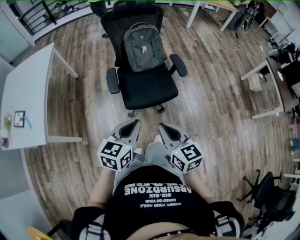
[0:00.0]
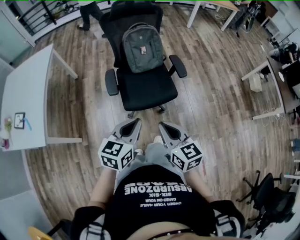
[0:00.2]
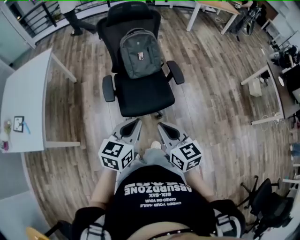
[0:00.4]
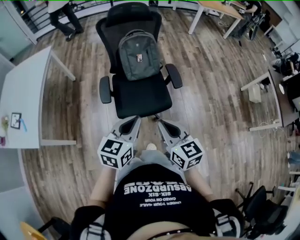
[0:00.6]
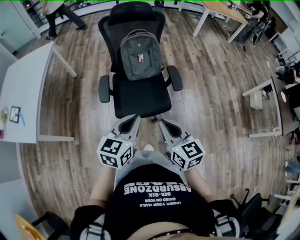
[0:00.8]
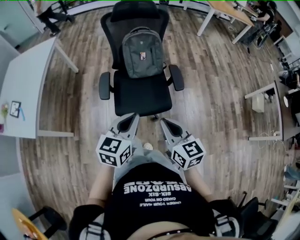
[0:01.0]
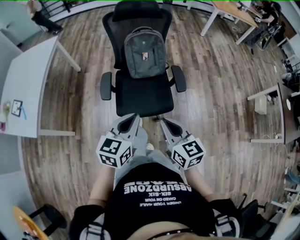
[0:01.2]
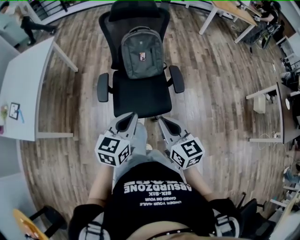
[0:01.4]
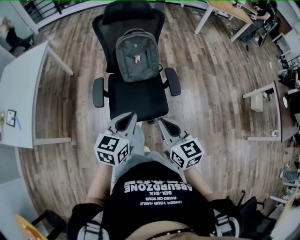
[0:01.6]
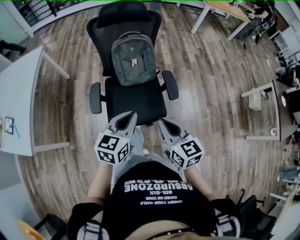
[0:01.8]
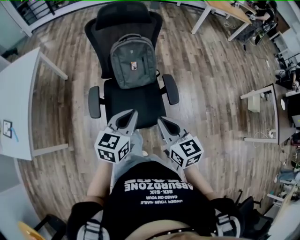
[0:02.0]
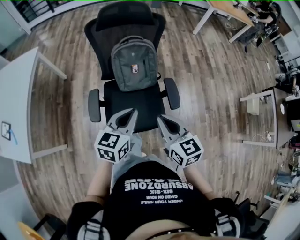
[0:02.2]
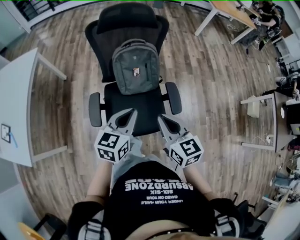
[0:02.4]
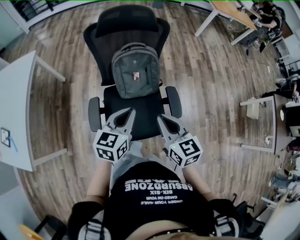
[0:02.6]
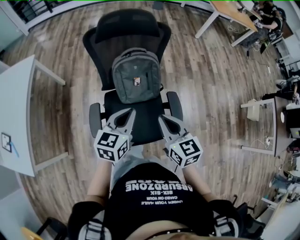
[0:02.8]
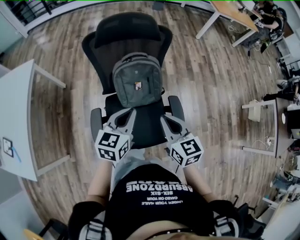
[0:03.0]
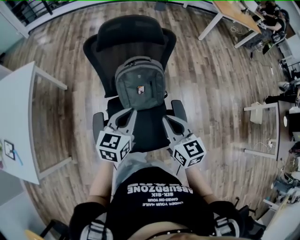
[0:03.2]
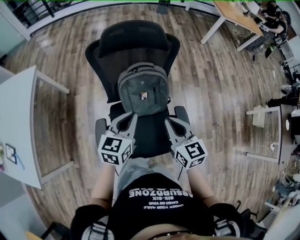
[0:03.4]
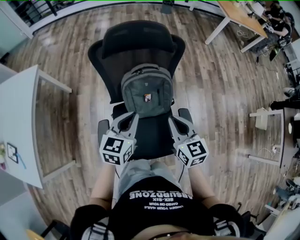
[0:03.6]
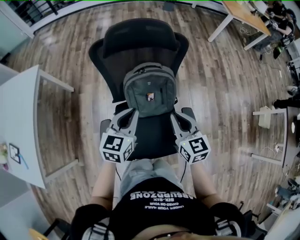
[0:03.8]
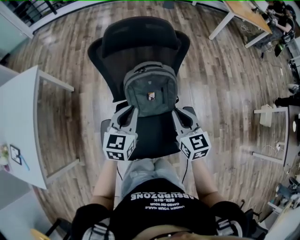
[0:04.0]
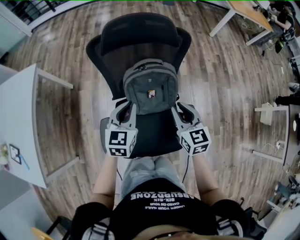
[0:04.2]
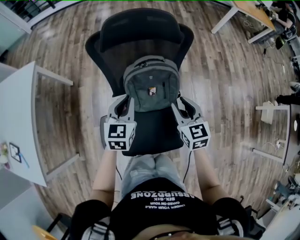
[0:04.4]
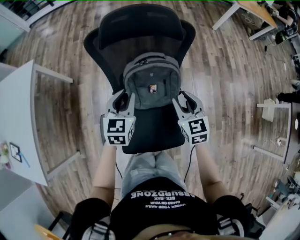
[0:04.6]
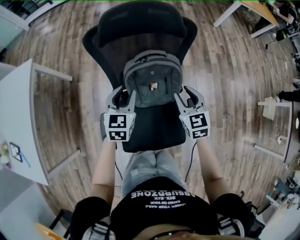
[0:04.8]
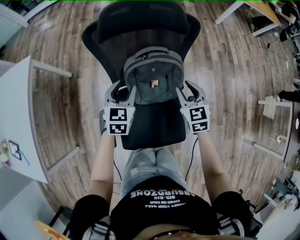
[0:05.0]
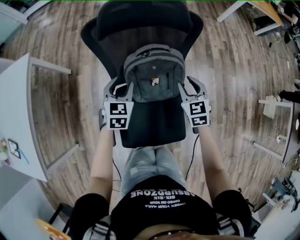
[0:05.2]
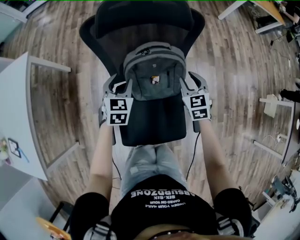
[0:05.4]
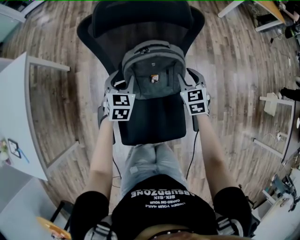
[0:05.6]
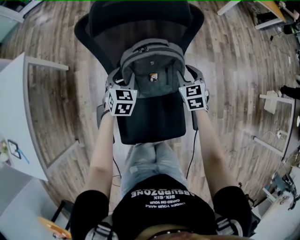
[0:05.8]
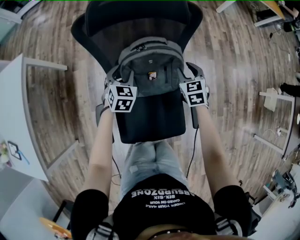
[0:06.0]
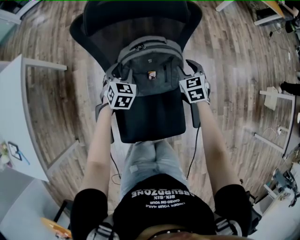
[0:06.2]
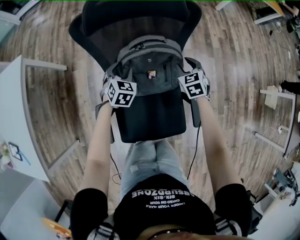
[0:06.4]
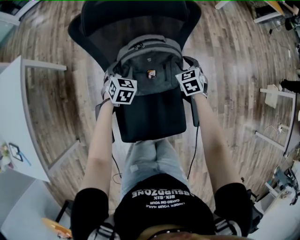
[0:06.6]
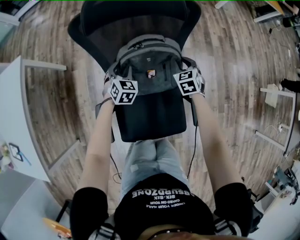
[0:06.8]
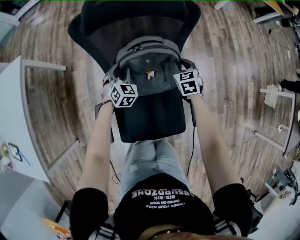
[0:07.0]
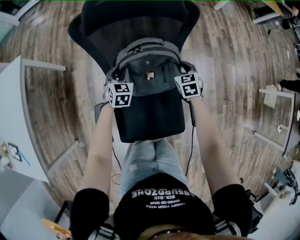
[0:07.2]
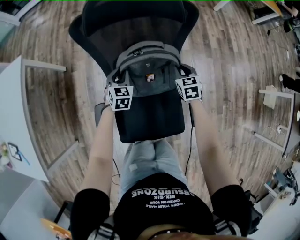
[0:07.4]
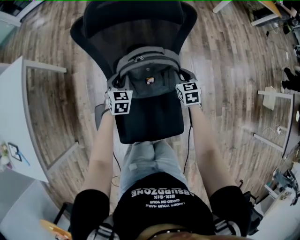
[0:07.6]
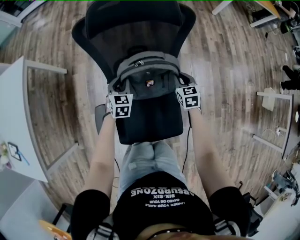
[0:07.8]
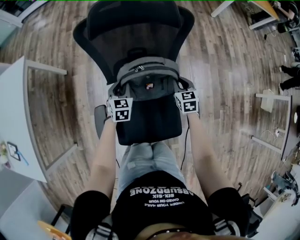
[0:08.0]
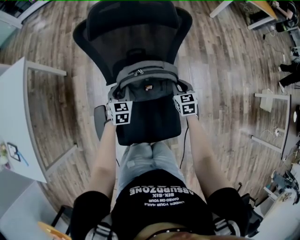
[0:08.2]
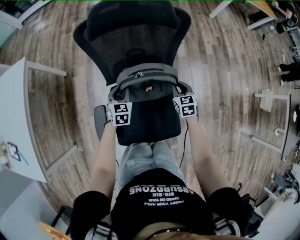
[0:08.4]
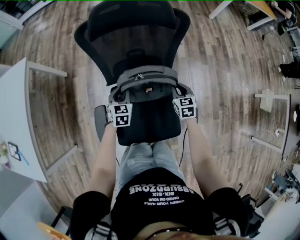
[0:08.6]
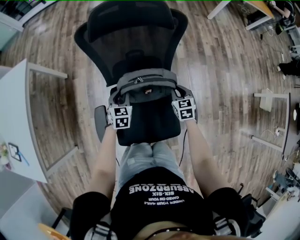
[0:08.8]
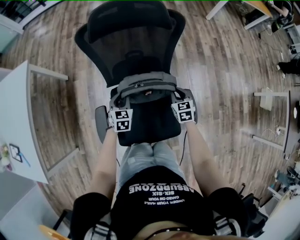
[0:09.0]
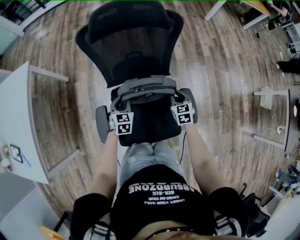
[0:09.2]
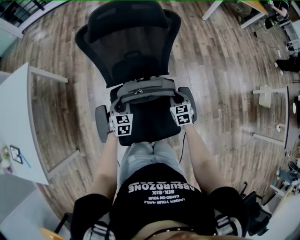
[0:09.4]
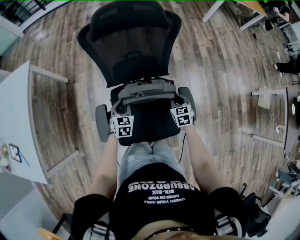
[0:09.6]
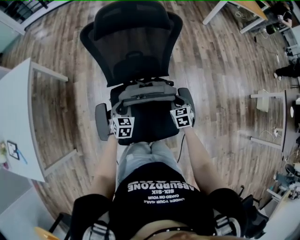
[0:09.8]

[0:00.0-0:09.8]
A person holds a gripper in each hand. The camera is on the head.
0:00.0 to 0:01.4: The two grippers go approximately 20 cm forward and to the right.
0:01.4 to 0:02.8: Both grippers move forward, roughly 30 cm.
0:02.8 to 0:04.2: The two grippers go about 20 cm forward and downward.
0:04.2 to 0:05.6: Both grippers travel together downward and forward, some 15 cm. The left gripper opens up, while the right gripper changes its angle by approximately 20 degrees.
0:05.6 to 0:07.0: The grippers both shift downward by roughly 10 cm.
0:07.0 to 0:08.4: The grippers both shift backward by some 10 cm. The left gripper turns by approximately 20 degrees.
0:08.4 to 0:09.8: Both grippers move backward, approximately 10 cm.

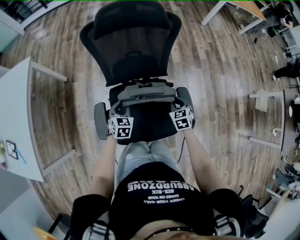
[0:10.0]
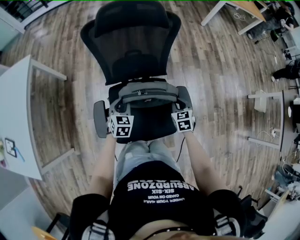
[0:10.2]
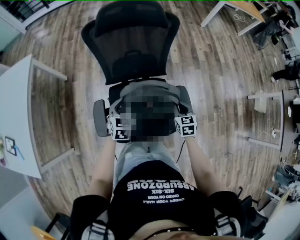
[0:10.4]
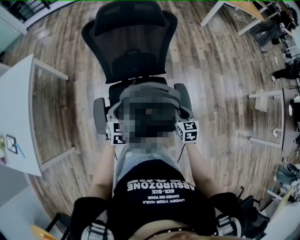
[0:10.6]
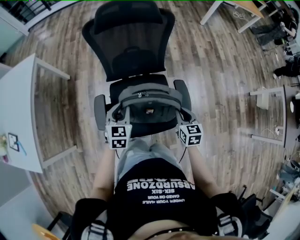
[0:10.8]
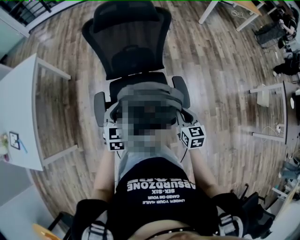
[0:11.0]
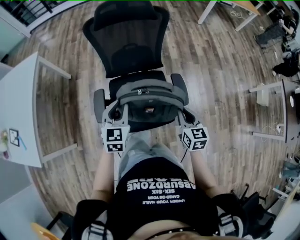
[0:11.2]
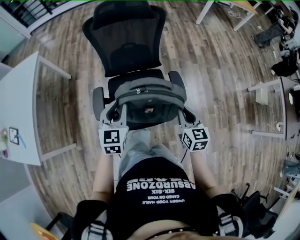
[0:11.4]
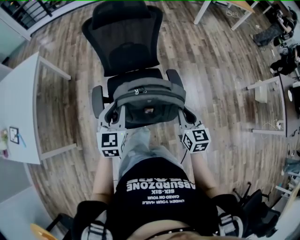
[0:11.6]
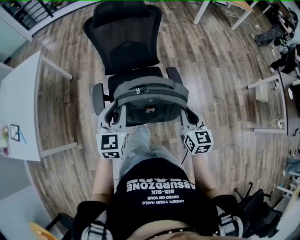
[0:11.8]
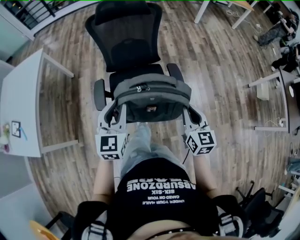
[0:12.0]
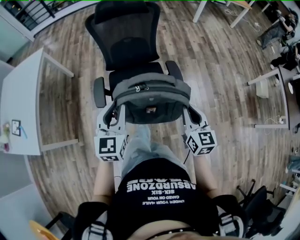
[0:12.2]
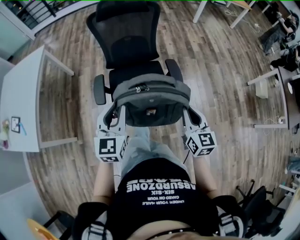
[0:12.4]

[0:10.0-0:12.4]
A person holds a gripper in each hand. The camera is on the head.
0:10.0 to 0:11.2: The left gripper is displaced upward and backward by about 25 cm; the right gripper travels backward and upward by some 25 cm, and changes its angle by some 30 degrees.
0:11.2 to 0:12.4: The grippers both shift backward and upward by some 20 cm.

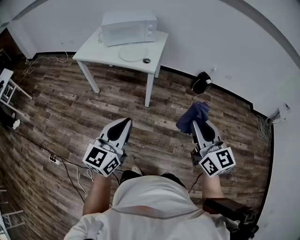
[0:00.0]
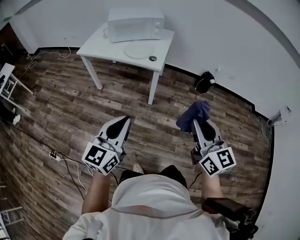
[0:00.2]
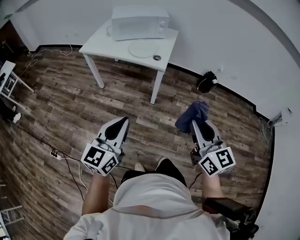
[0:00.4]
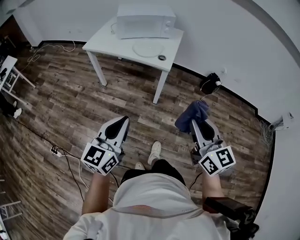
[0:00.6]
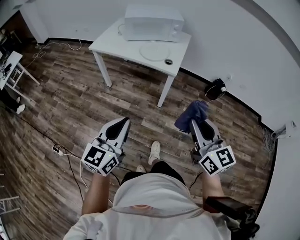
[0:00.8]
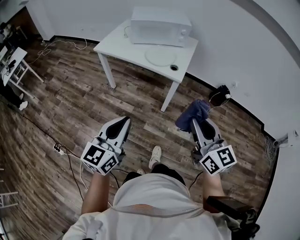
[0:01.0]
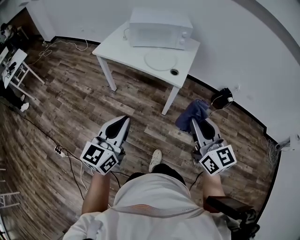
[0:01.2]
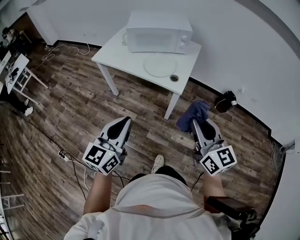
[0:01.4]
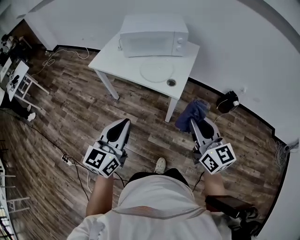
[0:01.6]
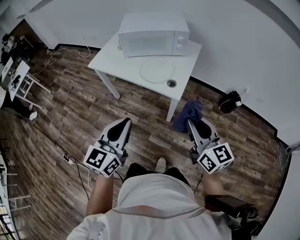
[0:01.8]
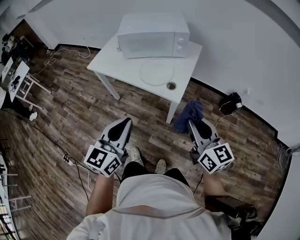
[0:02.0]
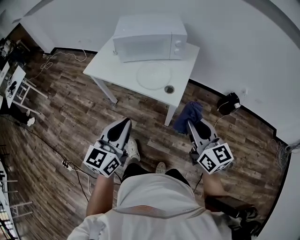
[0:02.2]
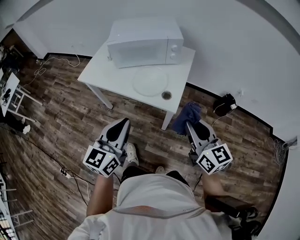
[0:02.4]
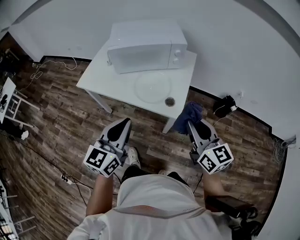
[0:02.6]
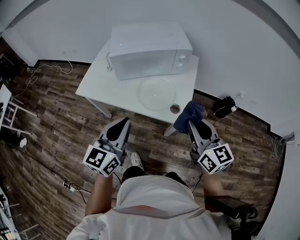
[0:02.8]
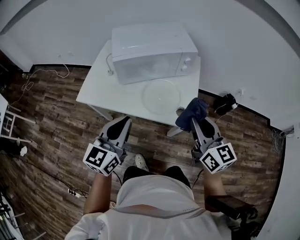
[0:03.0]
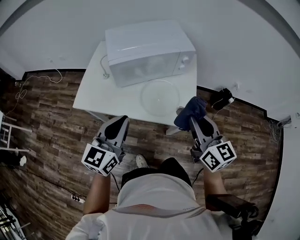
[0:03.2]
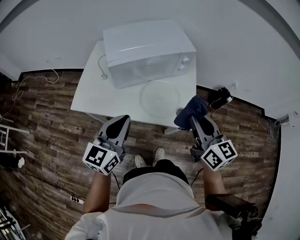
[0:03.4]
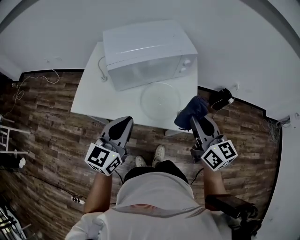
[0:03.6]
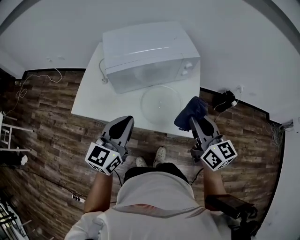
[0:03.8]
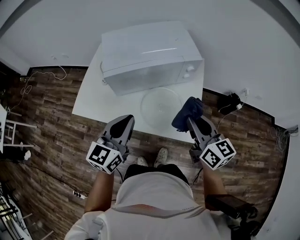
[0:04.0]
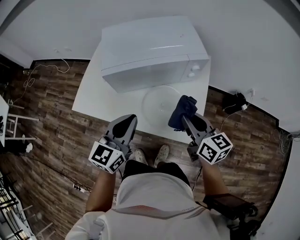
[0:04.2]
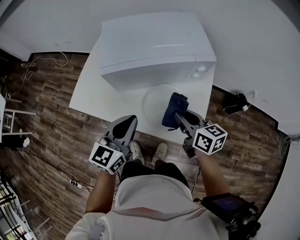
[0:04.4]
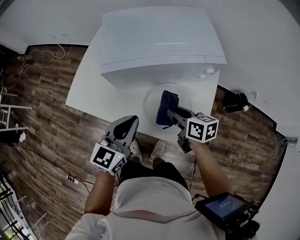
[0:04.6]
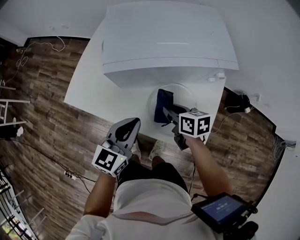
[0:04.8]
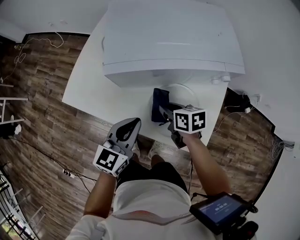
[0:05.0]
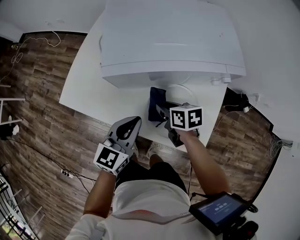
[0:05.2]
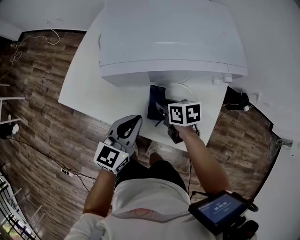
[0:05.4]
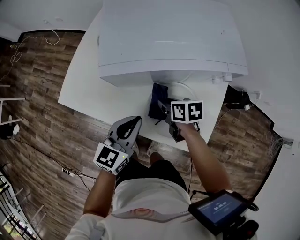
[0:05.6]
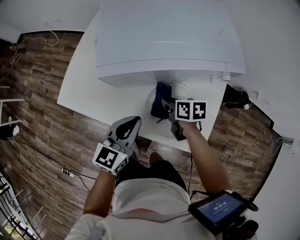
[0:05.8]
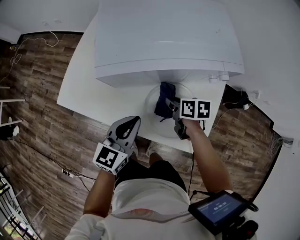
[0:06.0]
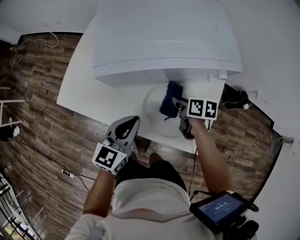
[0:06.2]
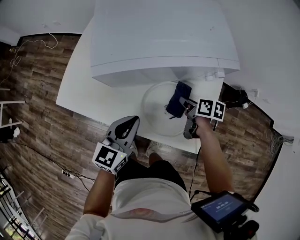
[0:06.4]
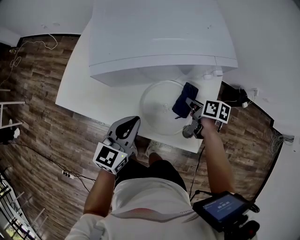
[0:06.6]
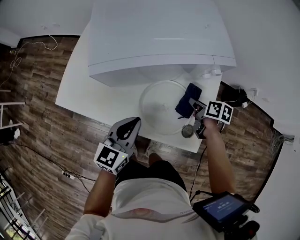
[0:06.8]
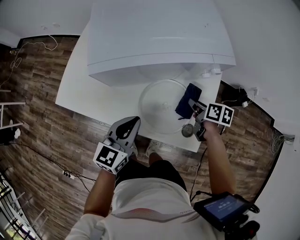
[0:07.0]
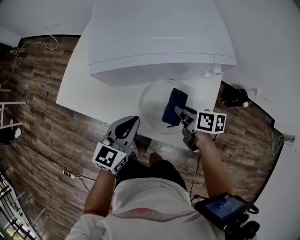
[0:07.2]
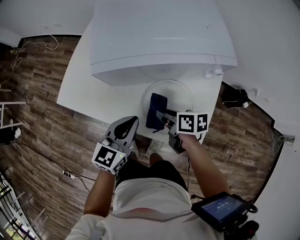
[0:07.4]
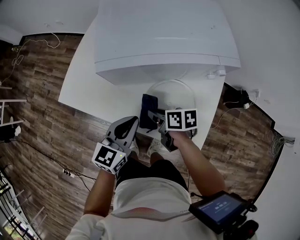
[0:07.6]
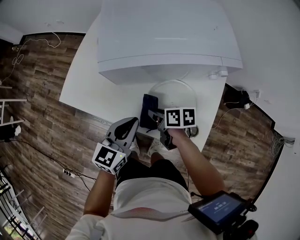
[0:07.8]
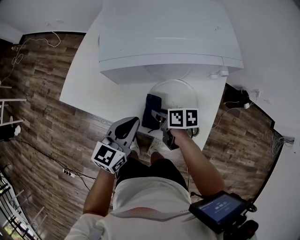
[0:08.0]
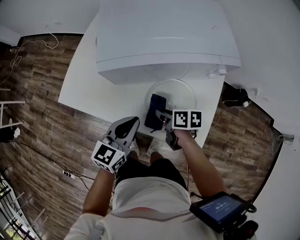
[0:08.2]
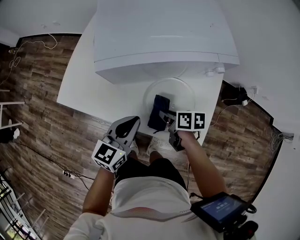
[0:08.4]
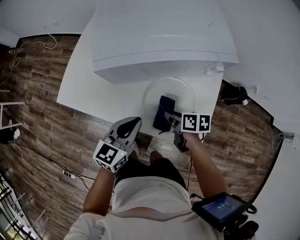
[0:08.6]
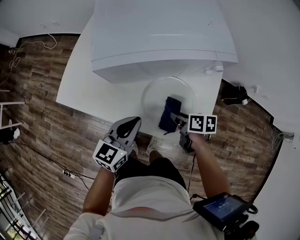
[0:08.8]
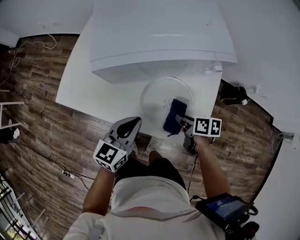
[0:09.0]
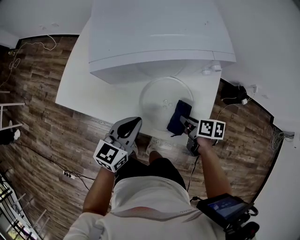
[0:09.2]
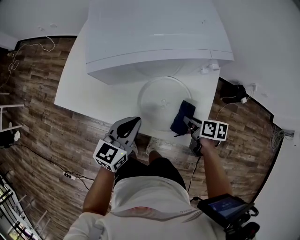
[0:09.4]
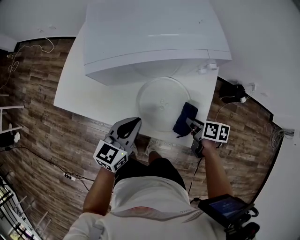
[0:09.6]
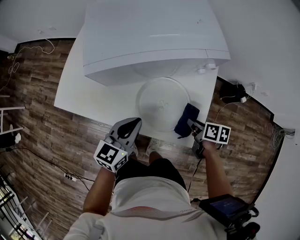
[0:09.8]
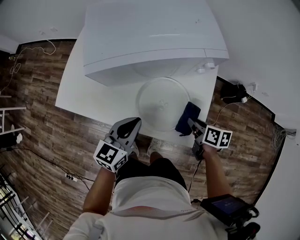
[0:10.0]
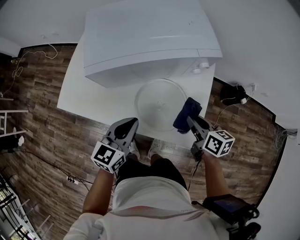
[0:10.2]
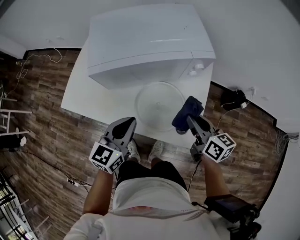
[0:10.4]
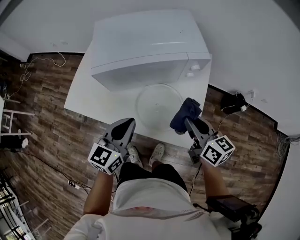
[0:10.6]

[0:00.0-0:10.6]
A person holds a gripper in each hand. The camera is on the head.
0:00.0 to 0:01.6: The grippers both shift forward by some 25 cm.
0:01.6 to 0:03.0: The right gripper shifts roughly 25 cm forward and to the left, while the left gripper moves forward, some 30 cm.
0:03.0 to 0:04.6: The right gripper is displaced downward, forward and to the left by approximately 30 cm, and changes its angle by about 40 degrees, while the left gripper travels forward and downward by approximately 20 cm.
0:04.6 to 0:06.0: The left gripper travels downward by some 5 cm, while the right gripper moves downward and forward, roughly 10 cm.
0:06.0 to 0:07.6: The right gripper is displaced backward by approximately 5 cm, and travels to the right and back again, about 15 cm each way.
0:07.6 to 0:09.0: The right gripper is displaced to the right and backward by some 15 cm.
0:09.0 to 0:10.6: The left gripper is displaced upward by some 10 cm. The right gripper moves upward, roughly 20 cm, and tips its fingers upward by approximately 30 degrees.

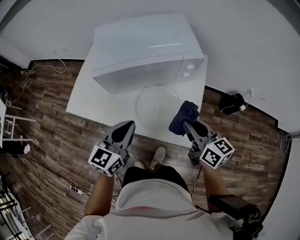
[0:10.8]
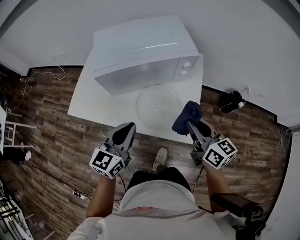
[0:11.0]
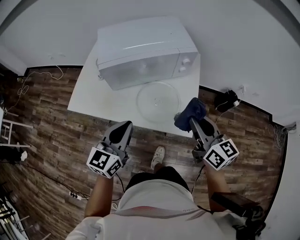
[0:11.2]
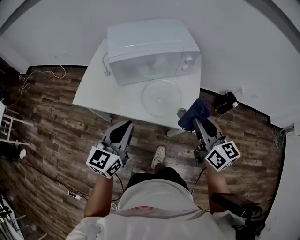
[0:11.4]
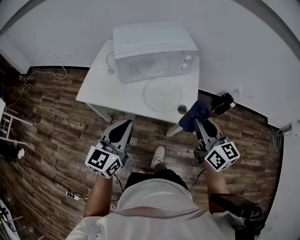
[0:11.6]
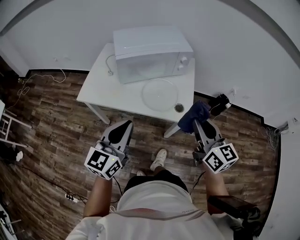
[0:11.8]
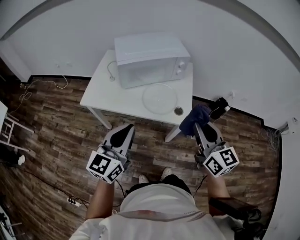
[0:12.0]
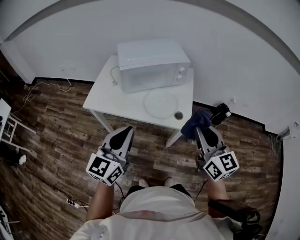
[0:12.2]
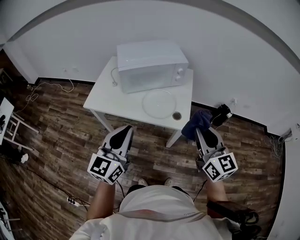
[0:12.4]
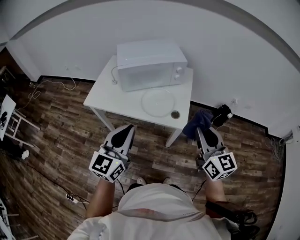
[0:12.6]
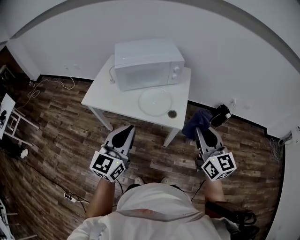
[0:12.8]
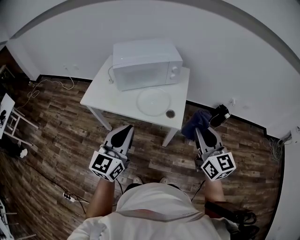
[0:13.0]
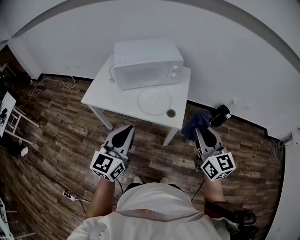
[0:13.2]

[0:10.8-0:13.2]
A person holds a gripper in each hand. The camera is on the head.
0:10.8 to 0:12.0: The two grippers go some 25 cm backward and upward. The right gripper rotates some 30 degrees.
0:12.0 to 0:13.2: The two grippers go some 10 cm to the right.
